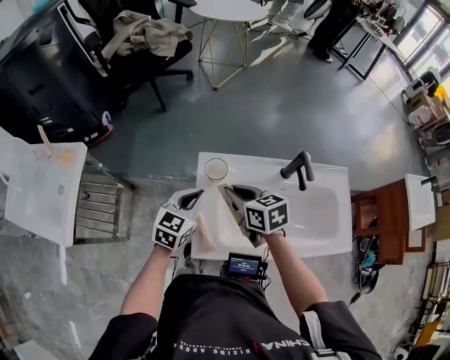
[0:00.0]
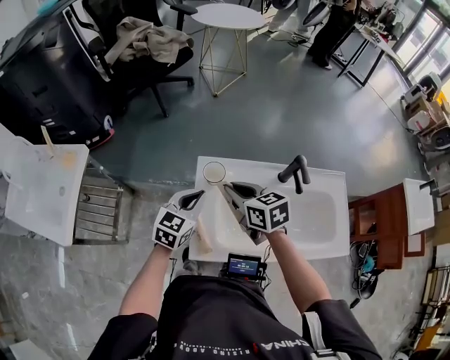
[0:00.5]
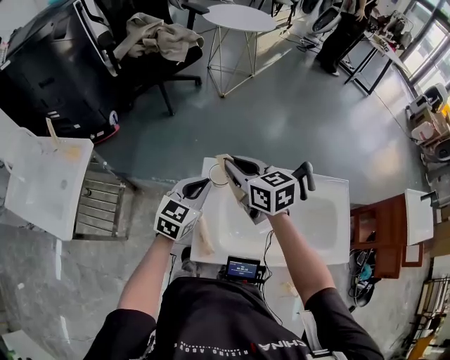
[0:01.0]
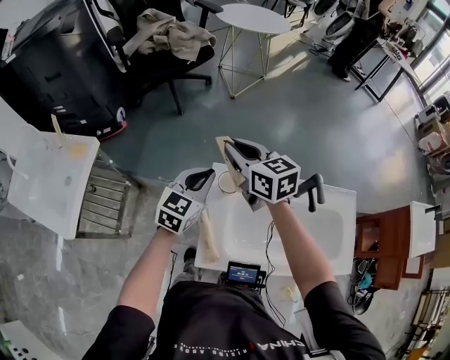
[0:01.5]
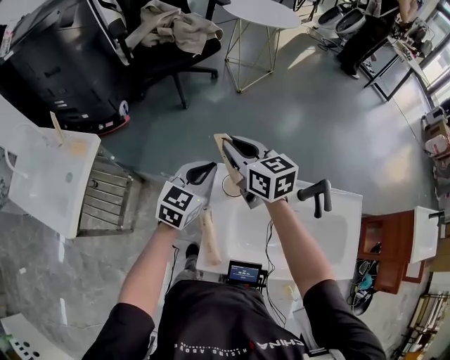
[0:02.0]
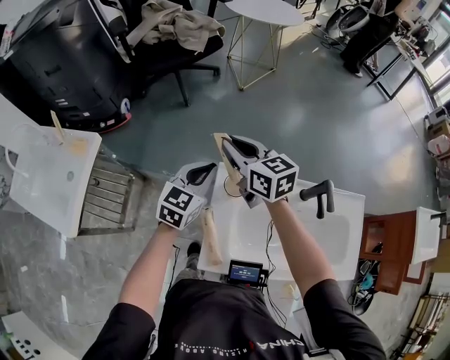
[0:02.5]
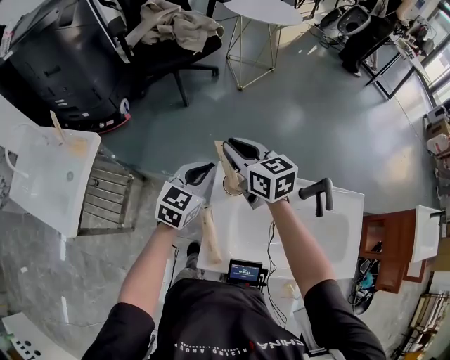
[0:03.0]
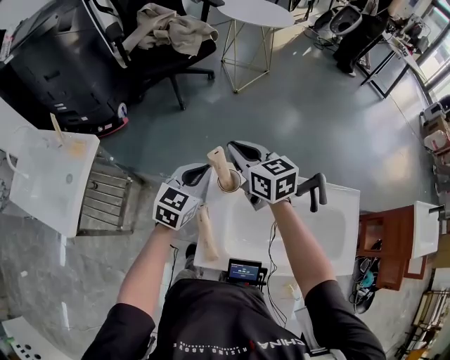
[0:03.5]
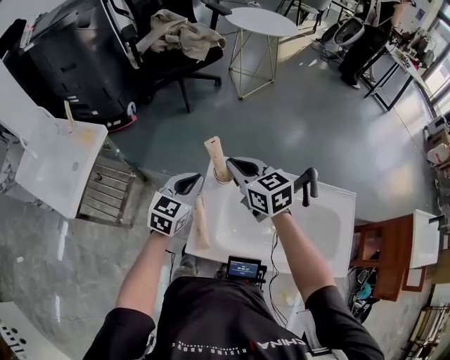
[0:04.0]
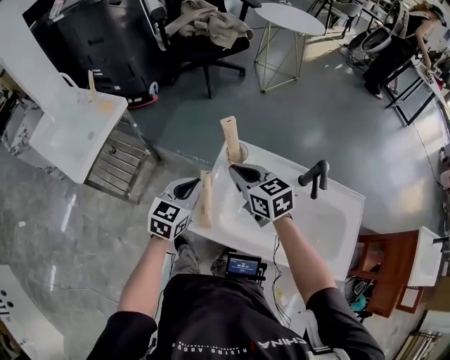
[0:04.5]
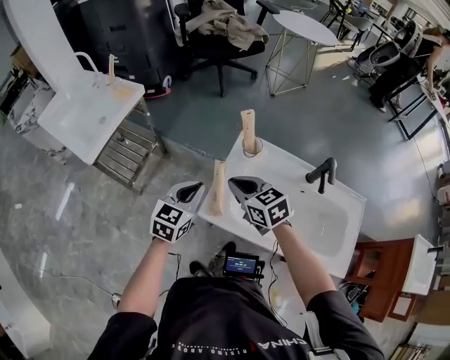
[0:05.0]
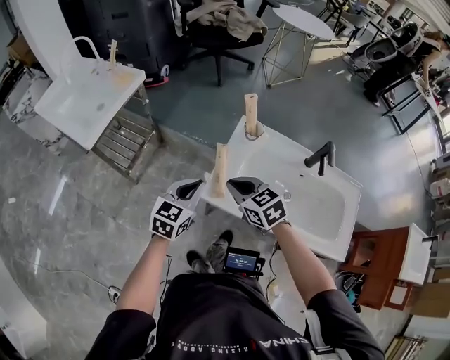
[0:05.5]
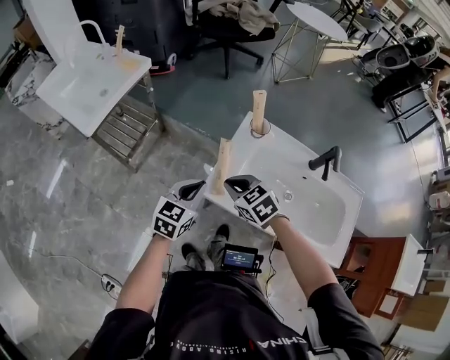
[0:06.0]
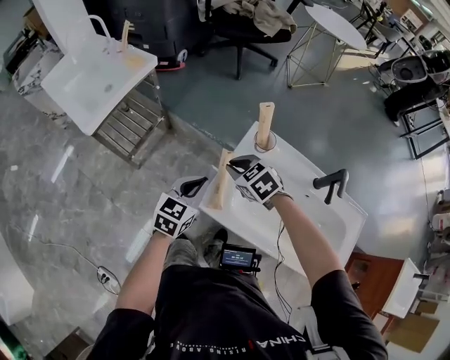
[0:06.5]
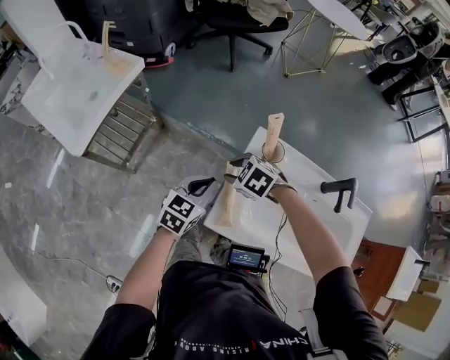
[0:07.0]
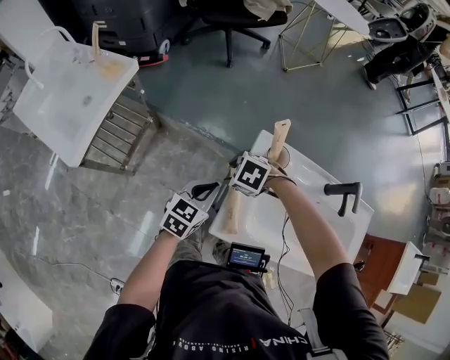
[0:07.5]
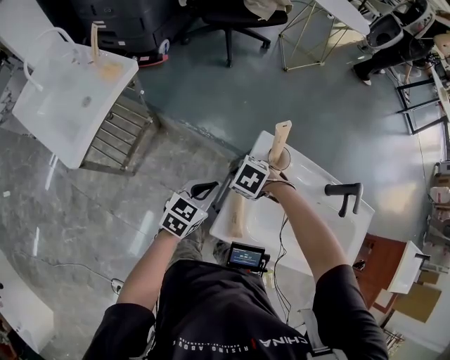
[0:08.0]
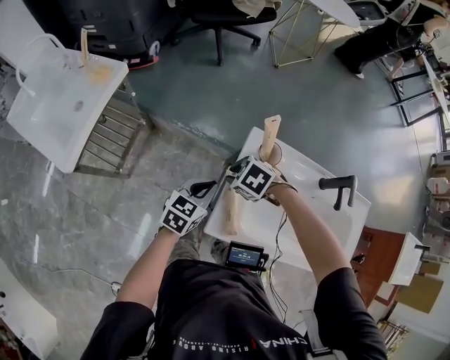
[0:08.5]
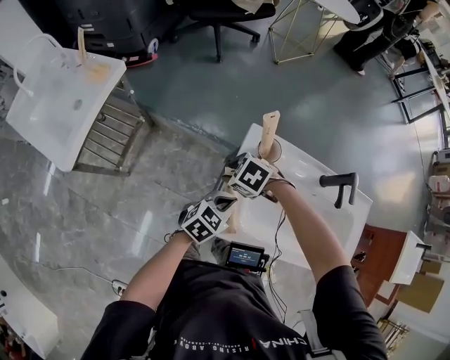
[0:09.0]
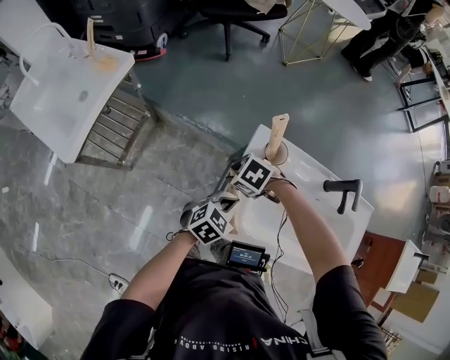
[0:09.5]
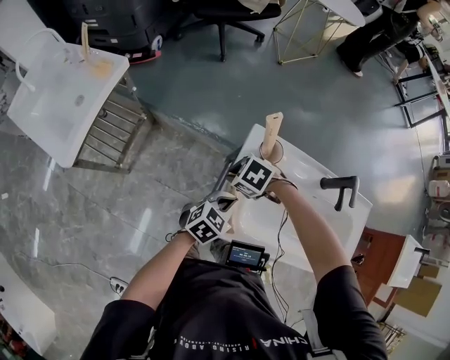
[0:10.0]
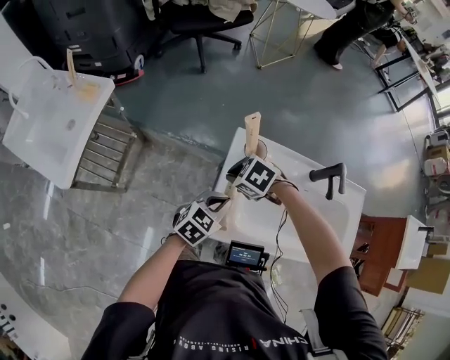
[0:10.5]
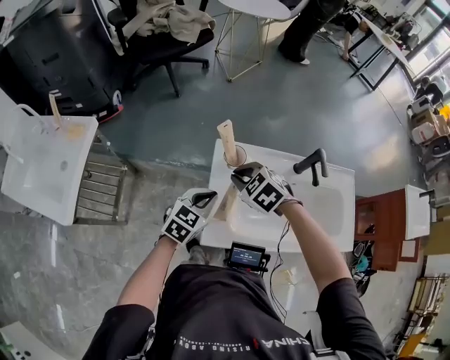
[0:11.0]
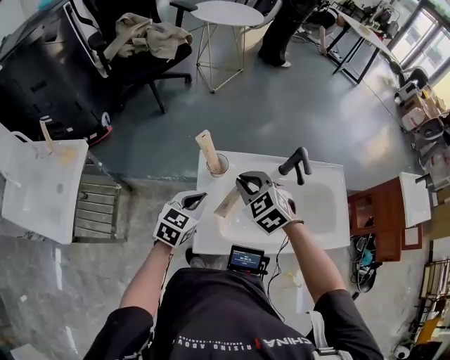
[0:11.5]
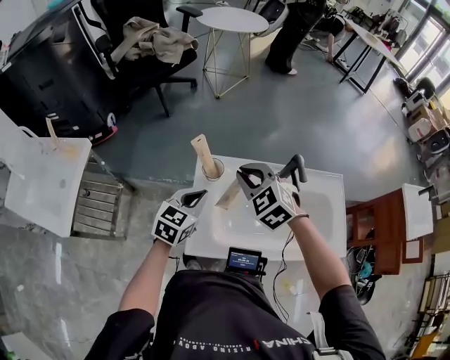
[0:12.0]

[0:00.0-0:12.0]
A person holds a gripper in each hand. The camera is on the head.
0.0 to 2.0 s: The left gripper travels forward and upward by about 15 cm. The right gripper shifts roughly 20 cm forward, upward and to the left, and changes its angle by roughly 20 degrees.
2.0 to 4.0 s: Both grippers travel together backward, some 10 cm.
4.0 to 6.0 s: The right gripper heads backward, downward and to the left, covering about 25 cm, and rotates approximately 30 degrees; the left gripper travels backward and to the left by roughly 20 cm.
6.0 to 8.0 s: The left gripper changes place by some 15 cm. The right gripper ends up some 20 cm from where it was, tilts its fingers some 30 degrees downward, and opens, then closes once more.
8.0 to 10.0 s: The right gripper opens and closes again. Meanwhile the left gripper ends up some 10 cm from where it was.
10.0 to 12.0 s: The right gripper goes some 20 cm upward, and angles its fingers upward, by roughly 30 degrees. The left gripper moves upward, approximately 15 cm.

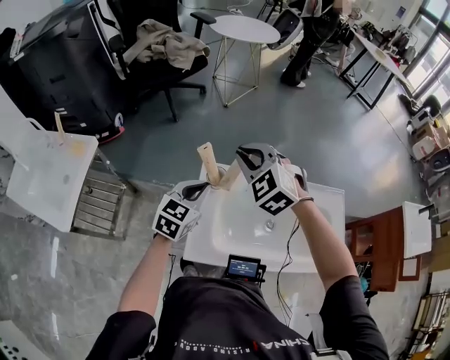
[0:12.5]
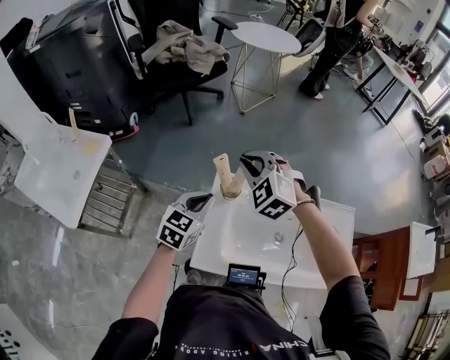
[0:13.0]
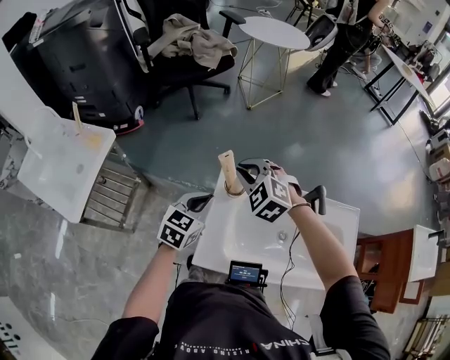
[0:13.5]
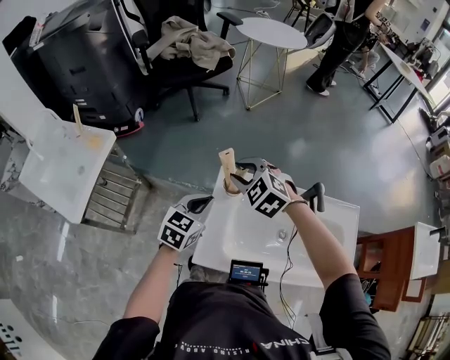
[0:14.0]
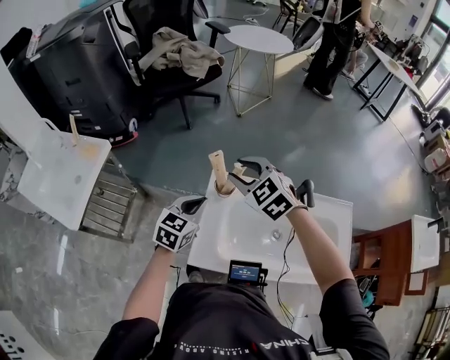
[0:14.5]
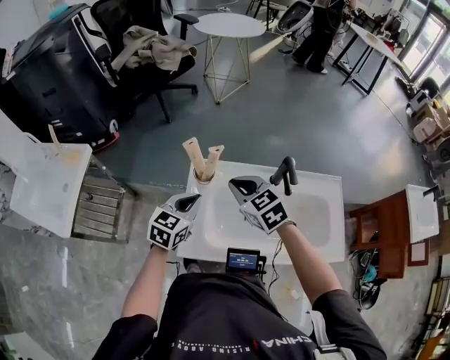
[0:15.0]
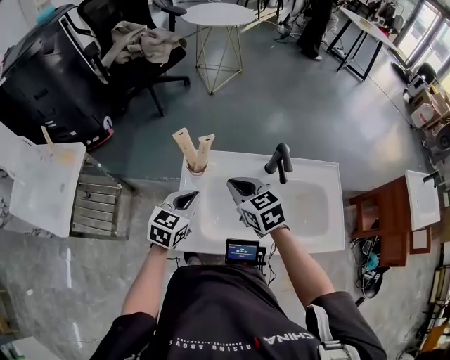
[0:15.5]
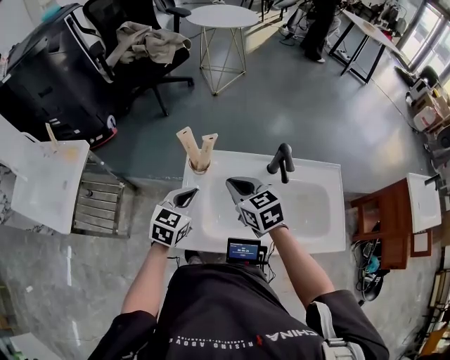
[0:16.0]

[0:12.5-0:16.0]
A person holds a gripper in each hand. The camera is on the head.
12.5 to 14.5 s: The right gripper opens its fingers.
14.5 to 16.0 s: The right gripper heads downward, backward and to the right, covering approximately 15 cm, turns by about 40 degrees, and closes up. Meanwhile the left gripper heads to the right, covering approximately 5 cm.

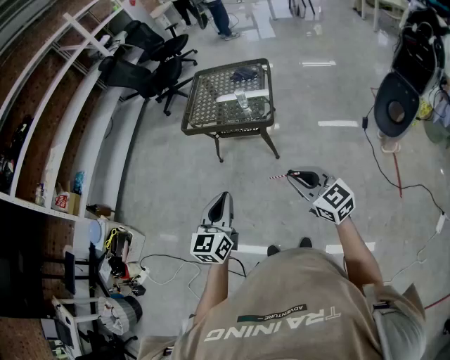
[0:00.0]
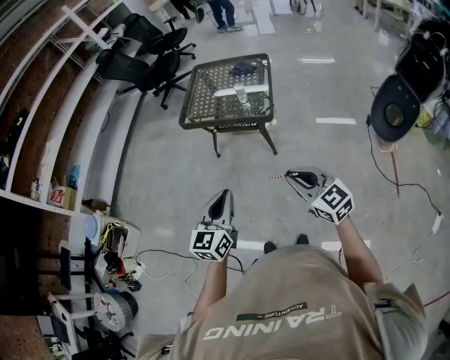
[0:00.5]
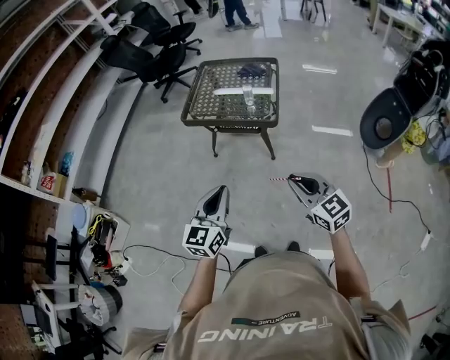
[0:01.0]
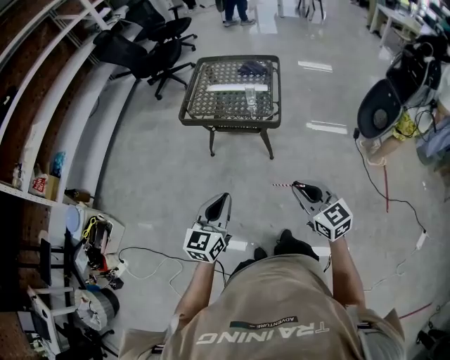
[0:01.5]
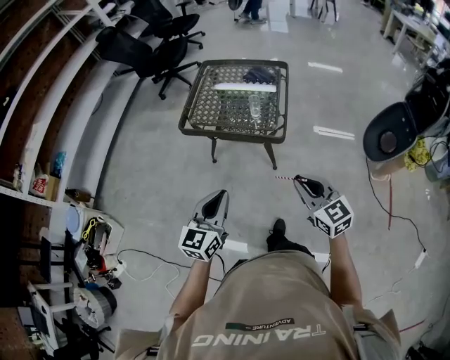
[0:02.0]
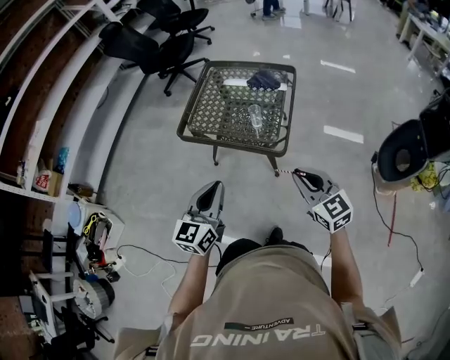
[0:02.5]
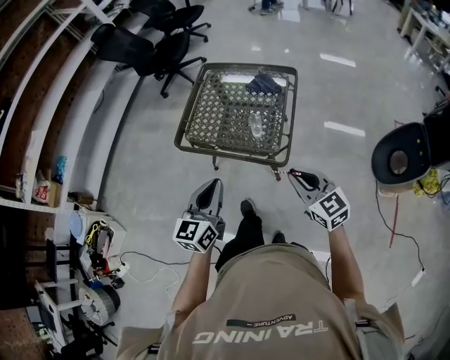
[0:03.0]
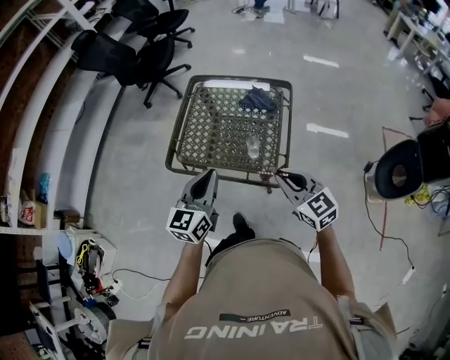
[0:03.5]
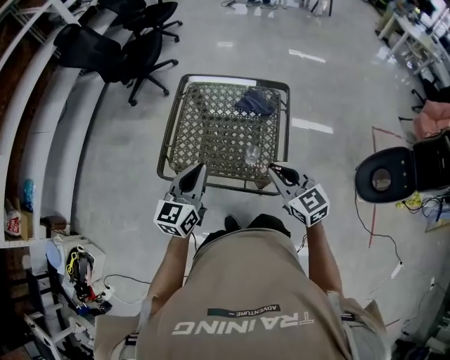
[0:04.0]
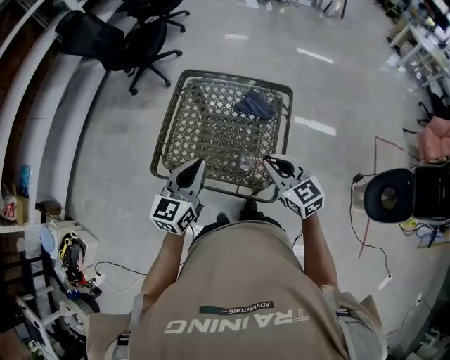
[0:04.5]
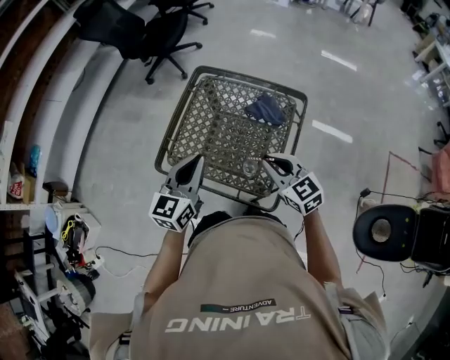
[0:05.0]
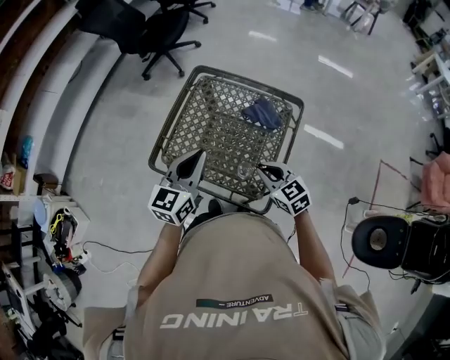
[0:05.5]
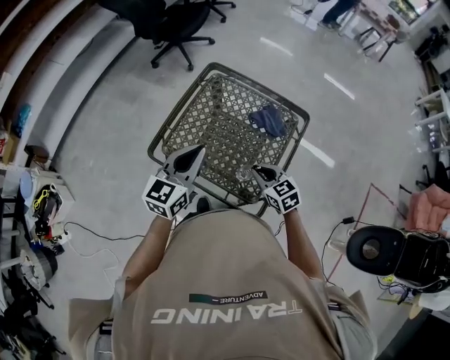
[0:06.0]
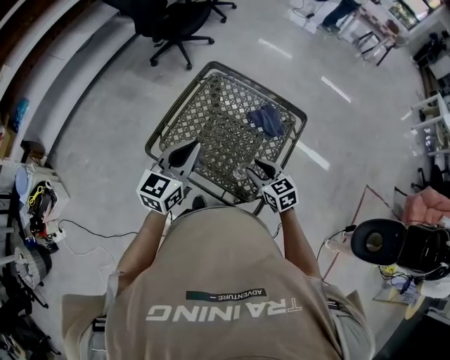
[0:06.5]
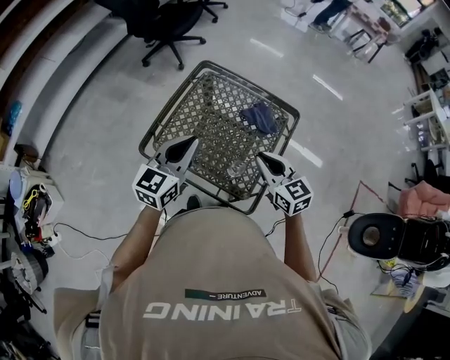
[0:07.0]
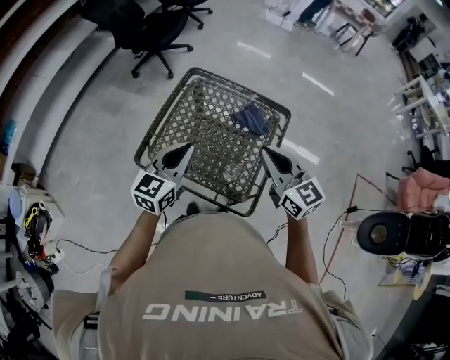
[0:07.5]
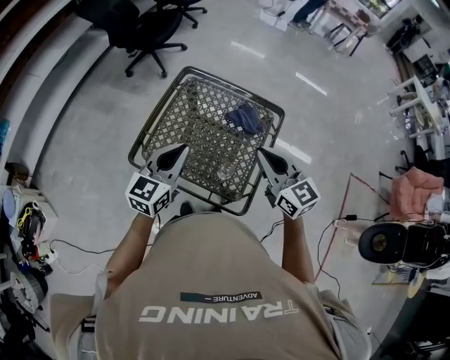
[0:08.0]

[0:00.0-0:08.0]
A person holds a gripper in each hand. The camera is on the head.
0.0 to 2.0 s: Both grippers travel together forward, some 20 cm.
2.0 to 4.0 s: The two grippers go about 40 cm forward.
4.0 to 6.0 s: The right gripper is displaced downward and forward by approximately 15 cm, and changes its angle by roughly 30 degrees. Meanwhile the left gripper is displaced forward by about 10 cm.
6.0 to 8.0 s: The right gripper heads upward, covering about 20 cm, rotates roughly 30 degrees, and opens and closes again.

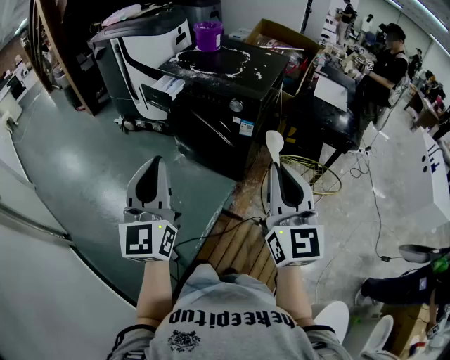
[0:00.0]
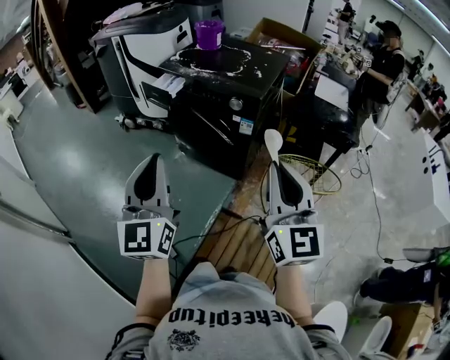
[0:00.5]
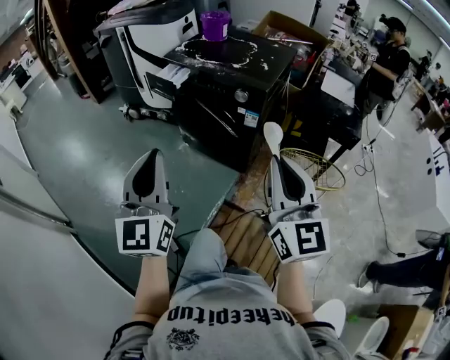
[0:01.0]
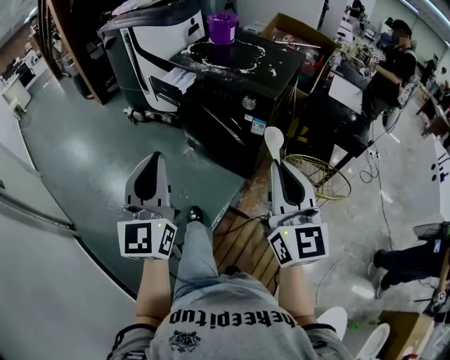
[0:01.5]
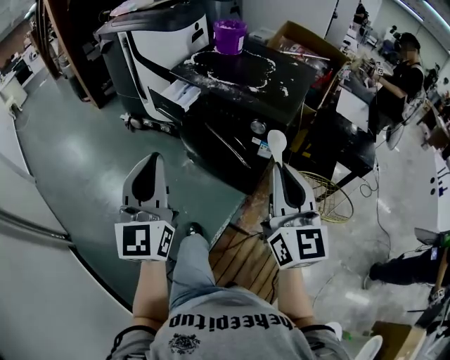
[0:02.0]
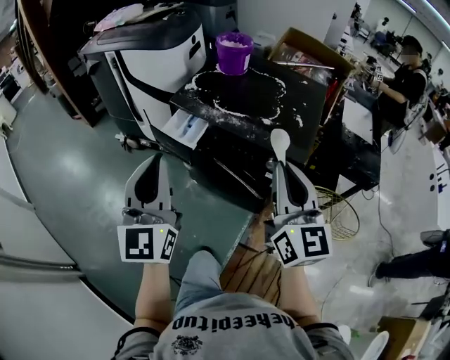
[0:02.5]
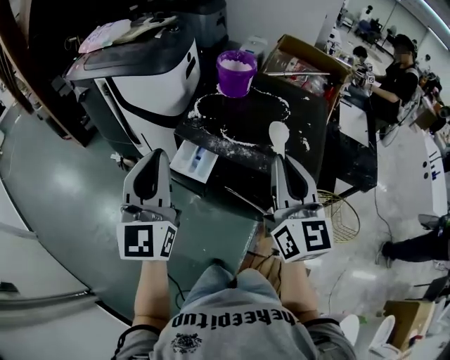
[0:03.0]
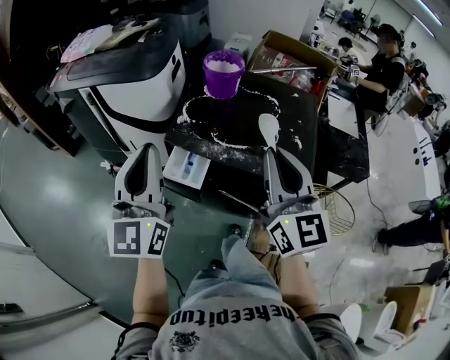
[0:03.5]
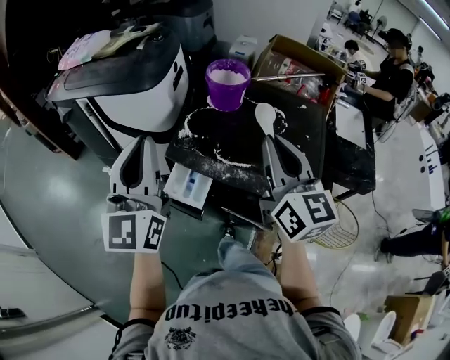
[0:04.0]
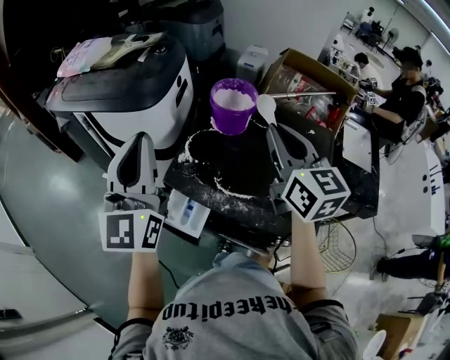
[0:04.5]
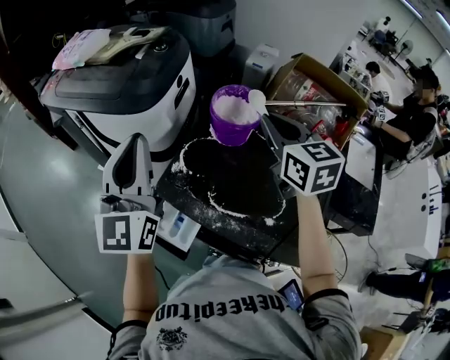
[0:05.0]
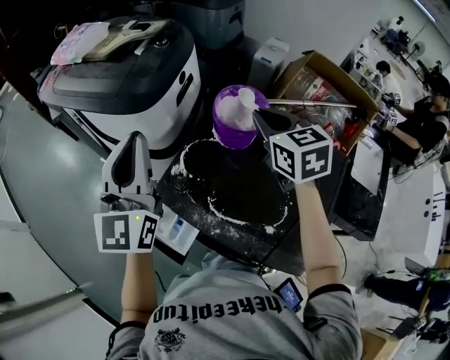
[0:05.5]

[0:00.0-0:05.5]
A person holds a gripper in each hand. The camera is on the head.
0.0 to 2.0 s: The two grippers go about 15 cm forward.
2.0 to 3.5 s: The left gripper shifts some 35 cm forward; the right gripper is displaced forward and to the left by approximately 35 cm.
3.5 to 5.5 s: Both grippers travel together forward, about 35 cm. The right gripper points its fingers some 30 degrees further downward.
